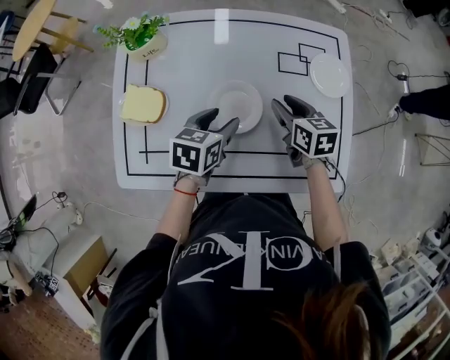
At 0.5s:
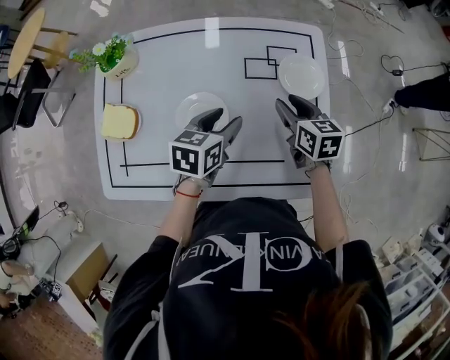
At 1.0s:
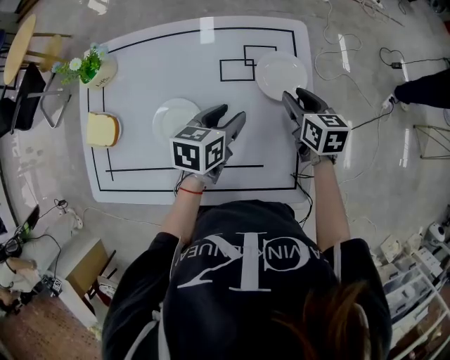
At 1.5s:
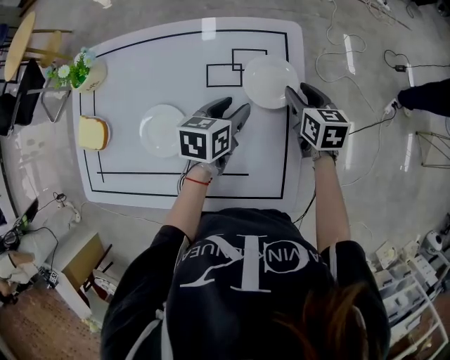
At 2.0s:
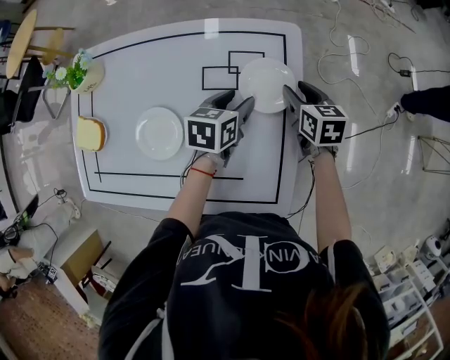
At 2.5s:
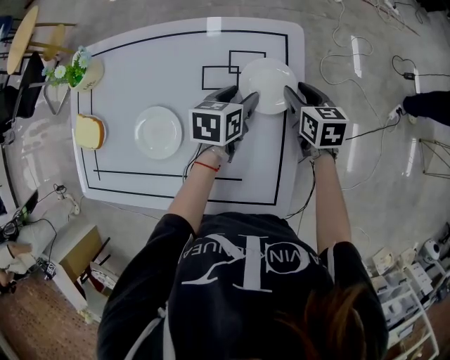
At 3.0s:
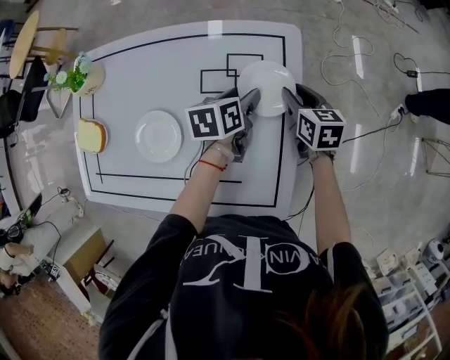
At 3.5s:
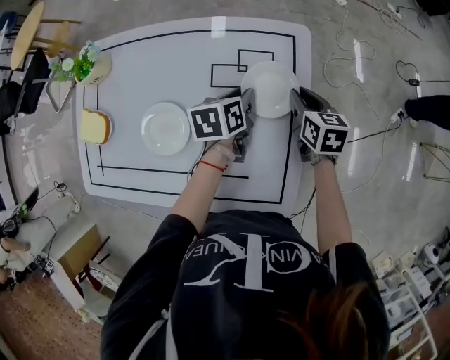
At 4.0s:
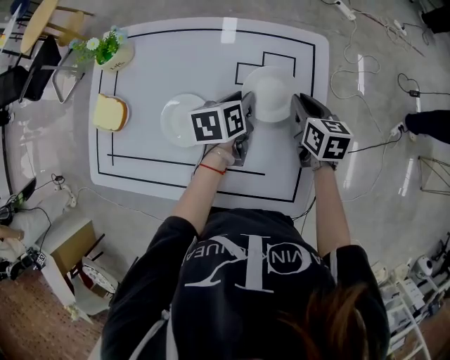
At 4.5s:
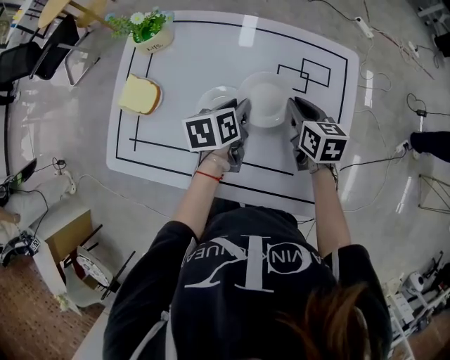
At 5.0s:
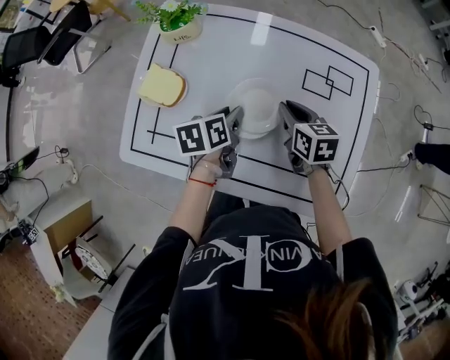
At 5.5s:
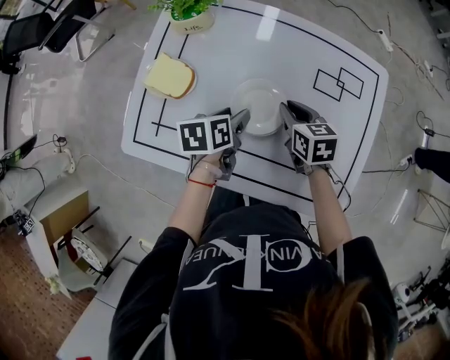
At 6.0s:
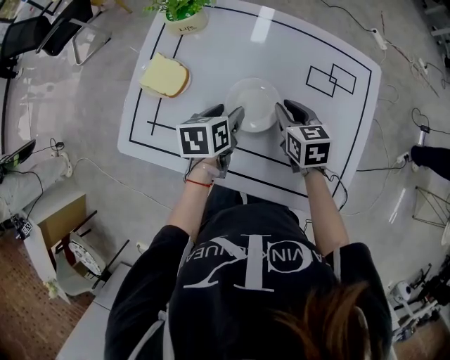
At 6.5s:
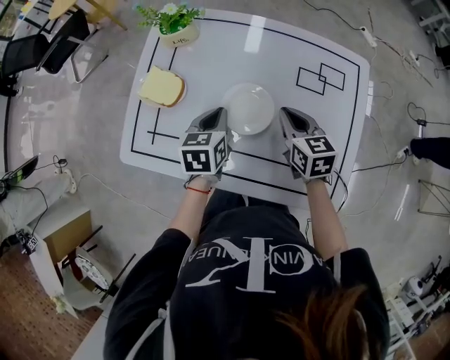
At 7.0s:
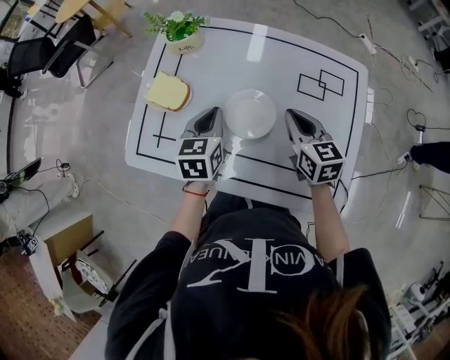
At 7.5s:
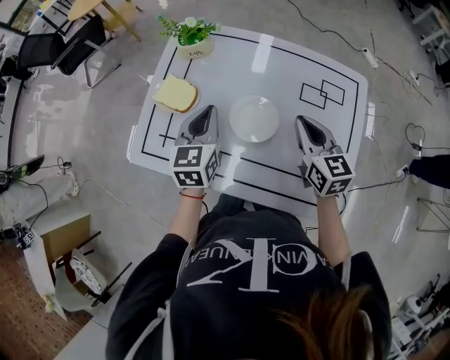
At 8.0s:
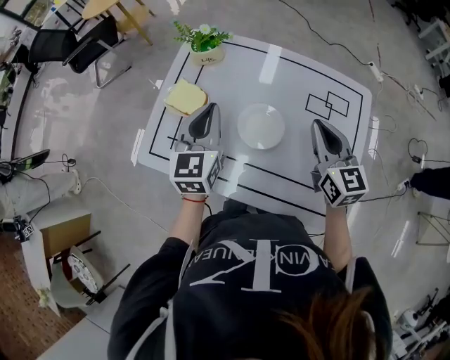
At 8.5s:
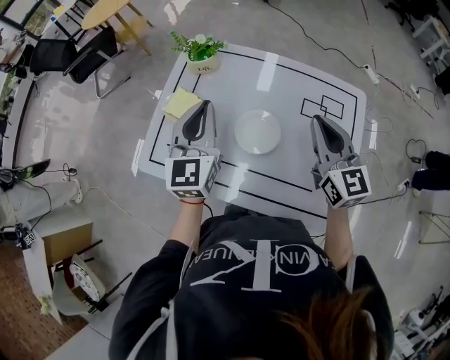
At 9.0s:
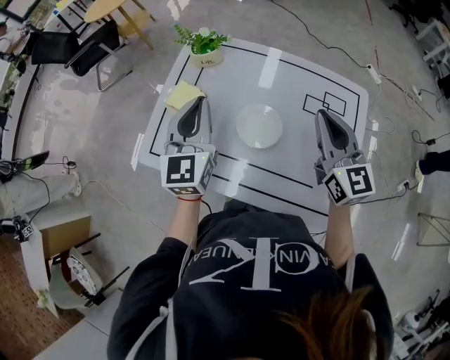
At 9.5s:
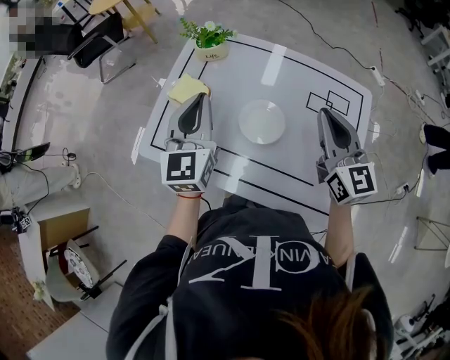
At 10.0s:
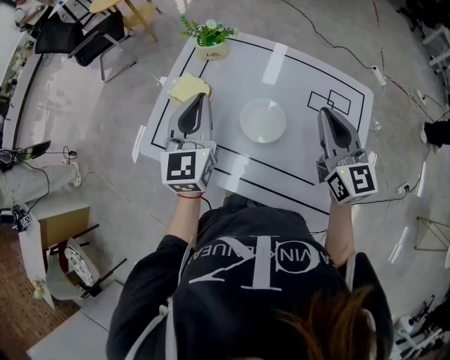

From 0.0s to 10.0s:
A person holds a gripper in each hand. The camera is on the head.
From 0.0s to 2.0s: Both grippers move to the right and forward, about 30 cm.
From 2.0s to 4.0s: The two grippers go roughly 5 cm to the left. The right gripper closes. The left gripper swivels about 20 degrees, and closes.
From 4.0s to 6.0s: Both grippers travel together to the left, roughly 25 cm. The right gripper turns by some 20 degrees. Meanwhile the left gripper opens up.
From 6.0s to 8.0s: The two grippers go roughly 15 cm upward. The left gripper tips its fingers upward by roughly 30 degrees, and closes up; the right gripper swivels roughly 30 degrees, and closes its fingers.
From 8.0s to 10.0s: The right gripper is displaced upward by roughly 5 cm. The left gripper shifts by approximately 5 cm.

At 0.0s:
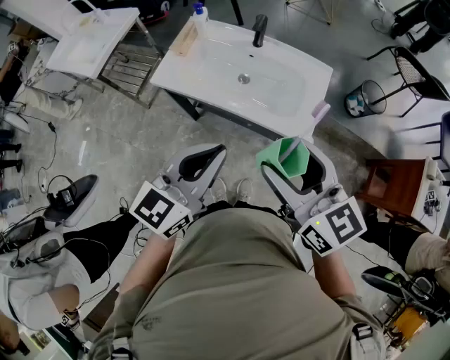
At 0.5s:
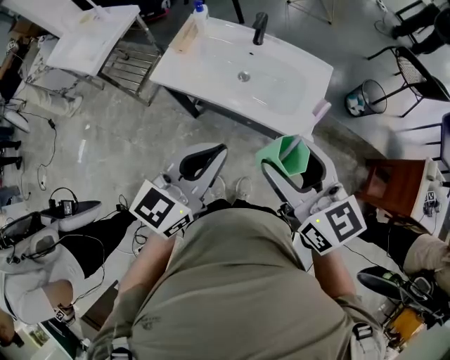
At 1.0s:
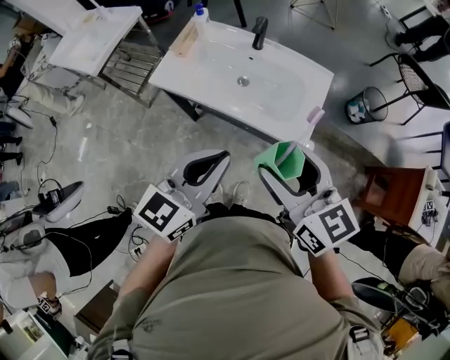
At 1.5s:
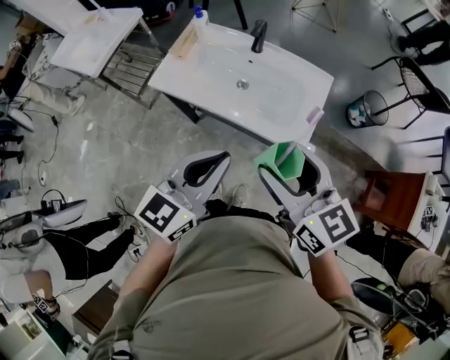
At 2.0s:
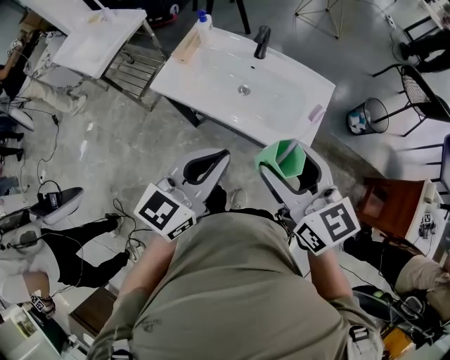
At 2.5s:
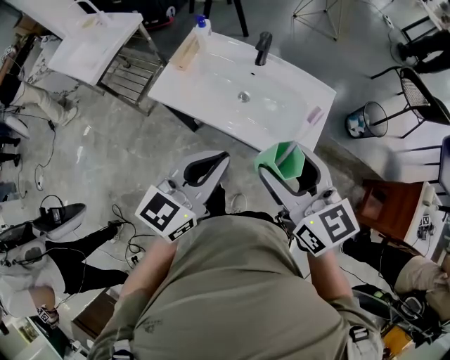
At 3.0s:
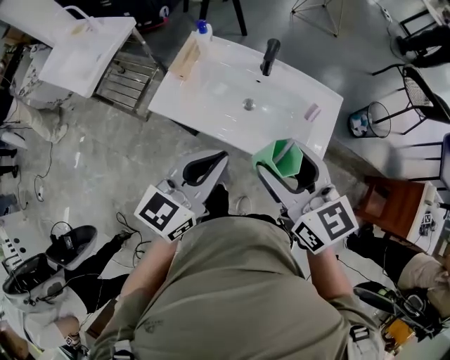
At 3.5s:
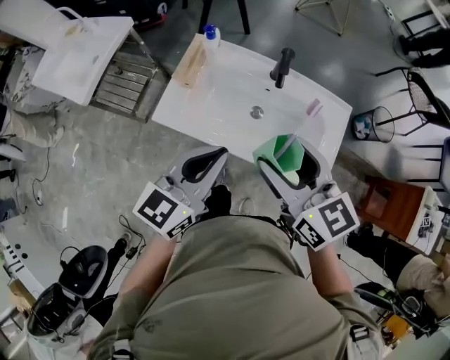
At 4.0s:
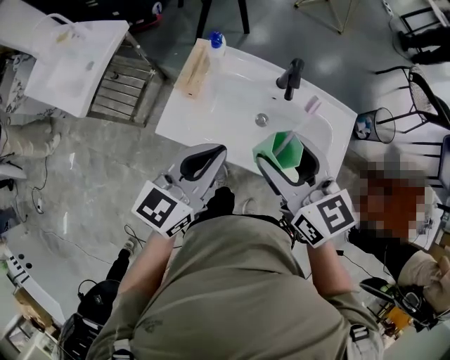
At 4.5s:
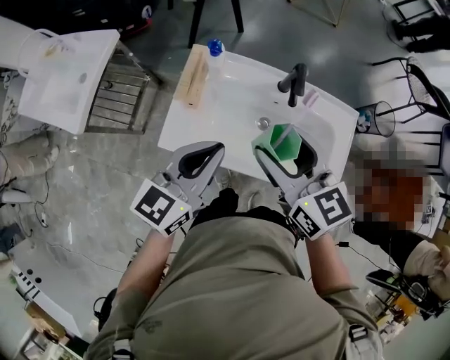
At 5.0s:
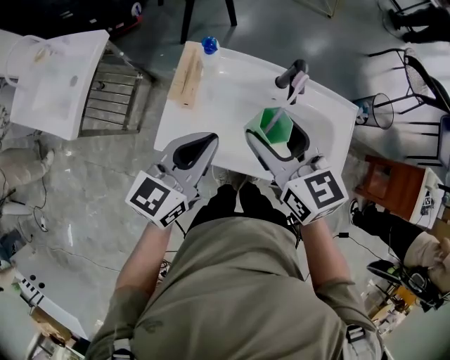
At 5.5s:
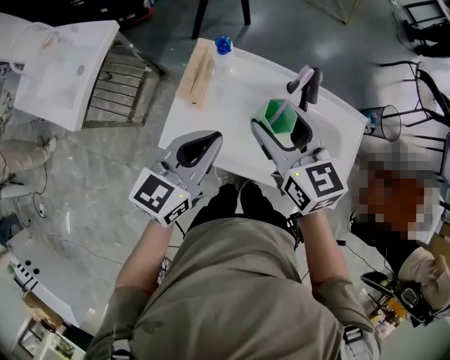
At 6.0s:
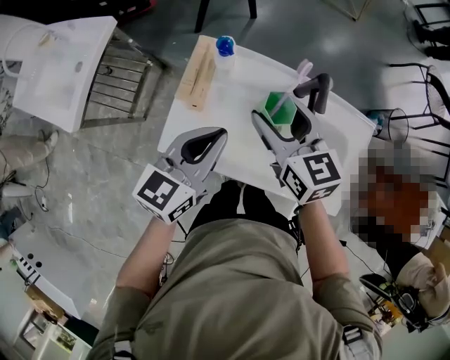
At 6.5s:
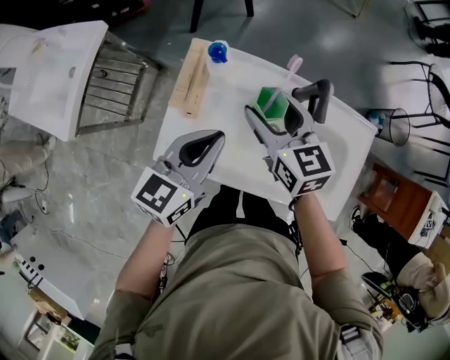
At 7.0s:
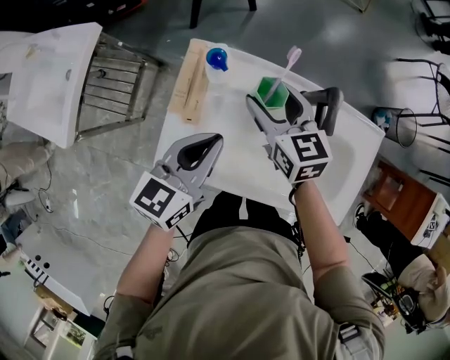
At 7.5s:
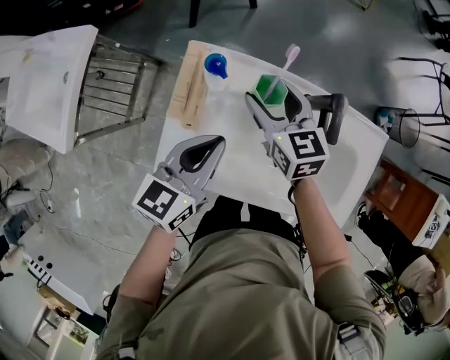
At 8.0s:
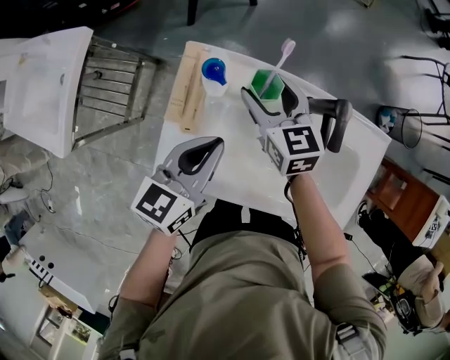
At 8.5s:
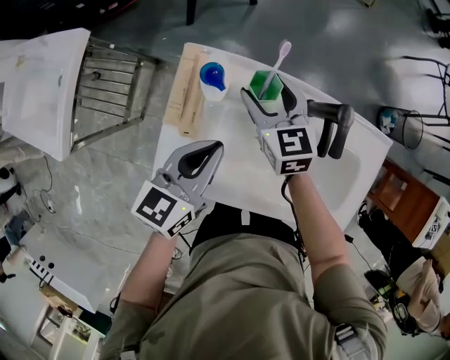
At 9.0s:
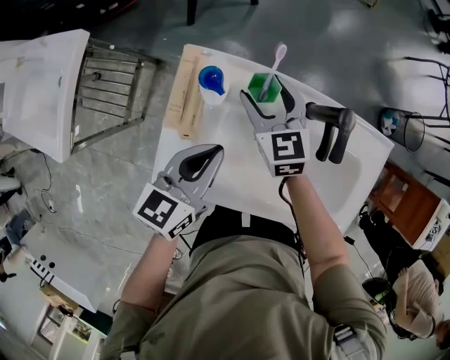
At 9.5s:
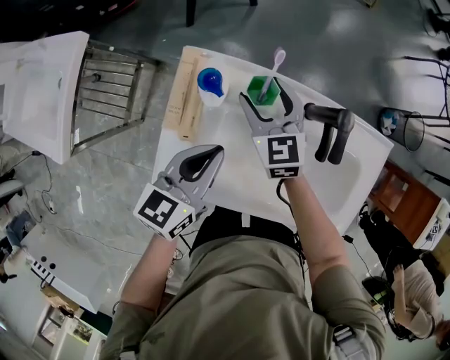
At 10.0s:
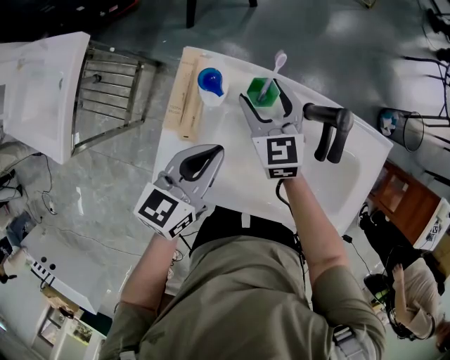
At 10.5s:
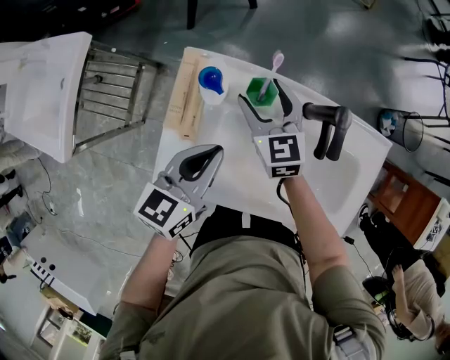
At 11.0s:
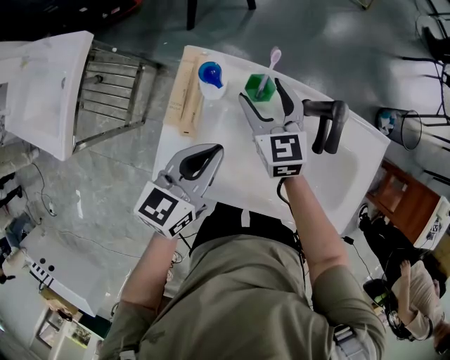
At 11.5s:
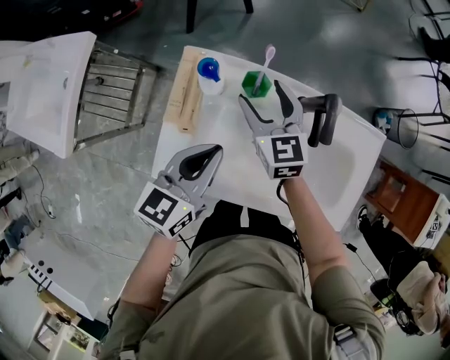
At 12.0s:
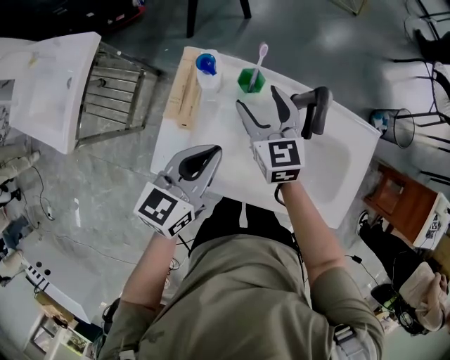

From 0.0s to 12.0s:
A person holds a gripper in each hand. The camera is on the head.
From 0.0s to 2.0s: The right gripper shifts by some 5 cm.
From 2.0s to 4.0s: The two grippers go some 25 cm forward and to the left.
From 4.0s to 6.0s: Both grippers move forward and downward, approximately 15 cm.
From 6.0s to 8.0s: The right gripper heads forward and downward, covering approximately 15 cm; the left gripper shifts roughly 10 cm downward and forward.
From 8.0s to 10.0s: The grippers move only a little.
From 10.0s to 12.0s: The left gripper shifts by about 5 cm. The right gripper heads upward, covering roughly 5 cm.

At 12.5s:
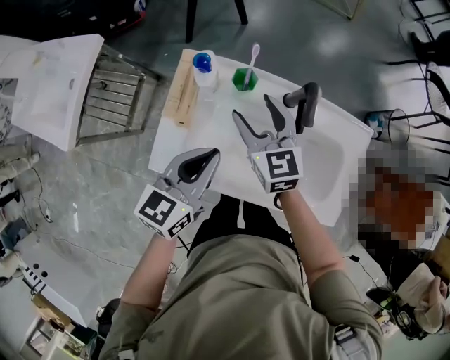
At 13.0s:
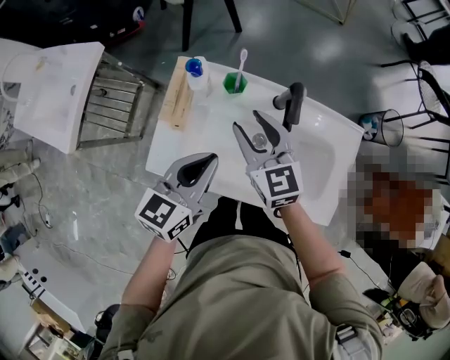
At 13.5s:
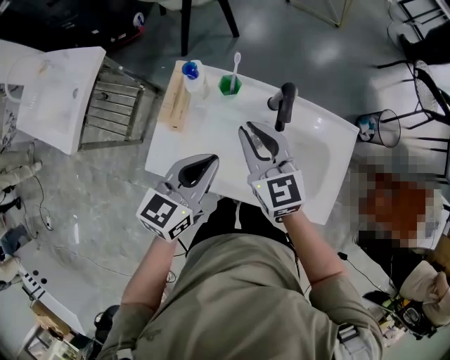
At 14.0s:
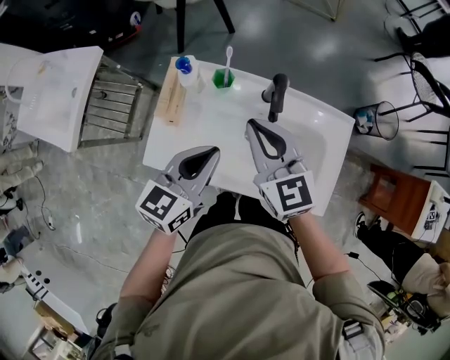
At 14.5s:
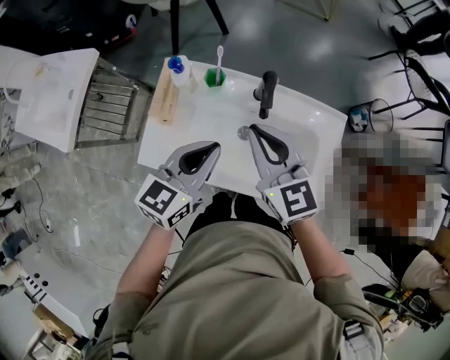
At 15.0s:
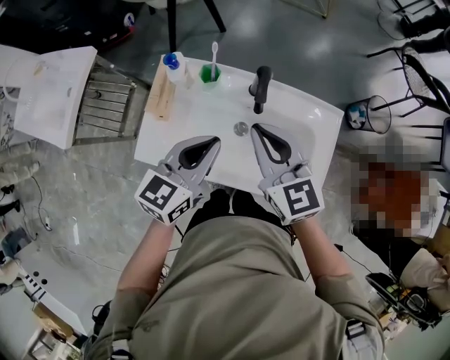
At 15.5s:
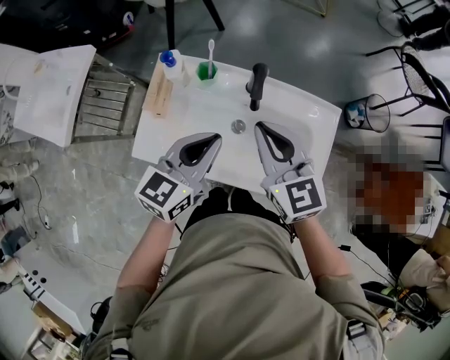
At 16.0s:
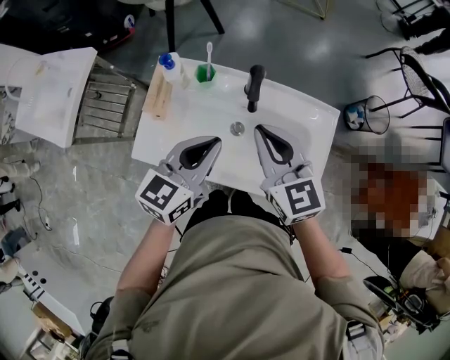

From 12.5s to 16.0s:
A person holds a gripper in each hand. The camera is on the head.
From 12.5s to 14.5s: The left gripper moves to the right and upward, roughly 10 cm. The right gripper heads upward, backward and to the right, covering roughly 20 cm, and closes.
From 14.5s to 16.0s: There are only small adjustments of the grippers.

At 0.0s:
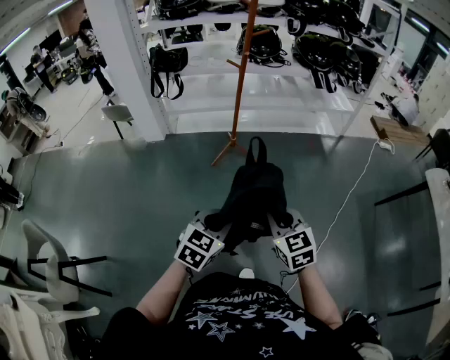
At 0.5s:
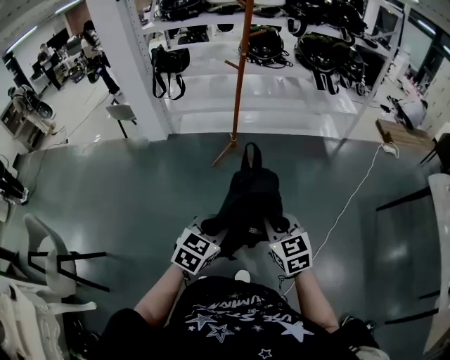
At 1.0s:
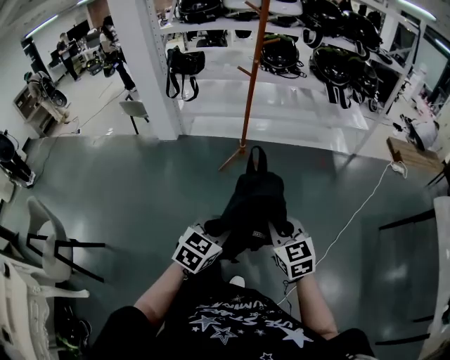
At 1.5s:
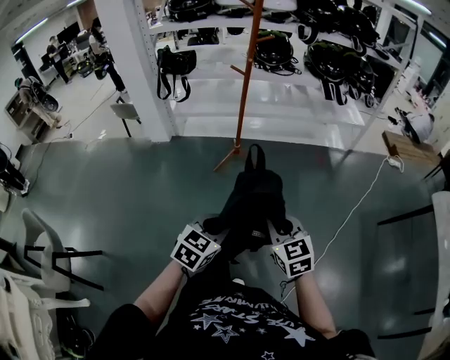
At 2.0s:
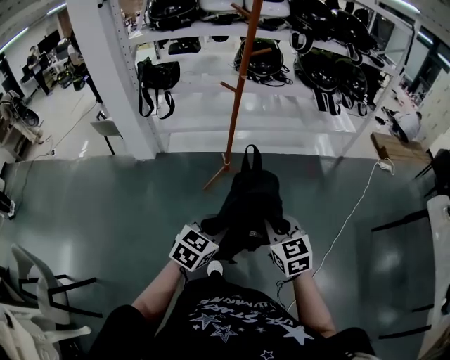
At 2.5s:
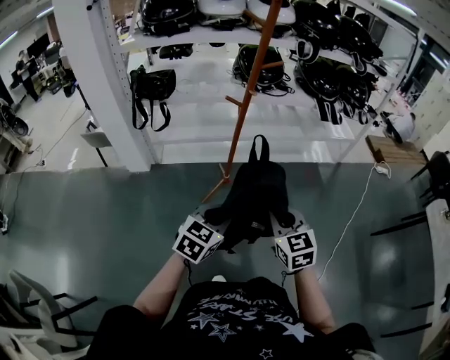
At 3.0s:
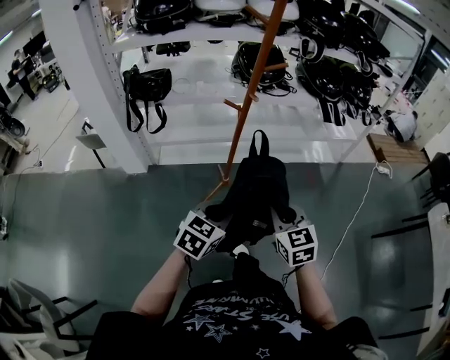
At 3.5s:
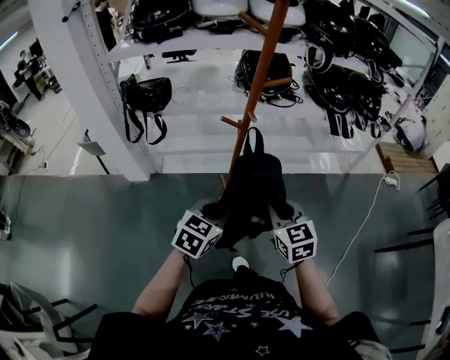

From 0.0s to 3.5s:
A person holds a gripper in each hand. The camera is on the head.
From 0.0s to 2.0s: Both grippers move forward, some 20 cm.
From 2.0s to 3.5s: Both grippers travel together forward, approximately 30 cm.
